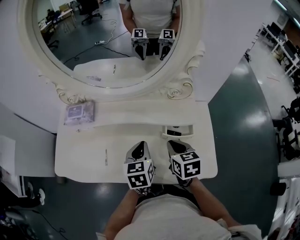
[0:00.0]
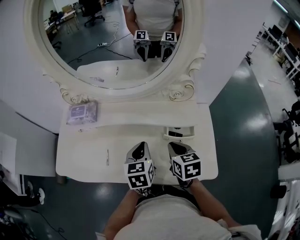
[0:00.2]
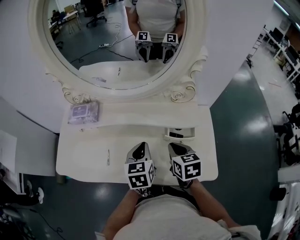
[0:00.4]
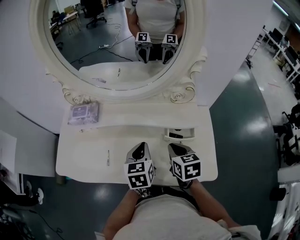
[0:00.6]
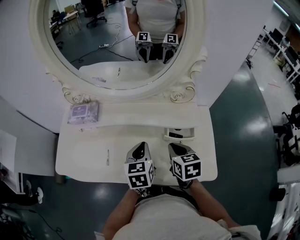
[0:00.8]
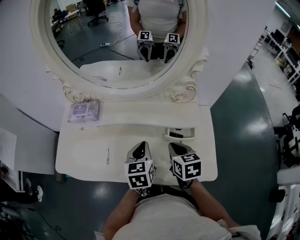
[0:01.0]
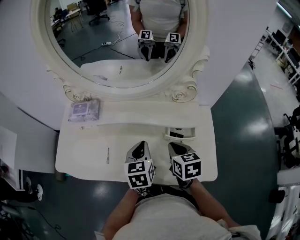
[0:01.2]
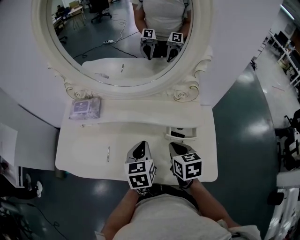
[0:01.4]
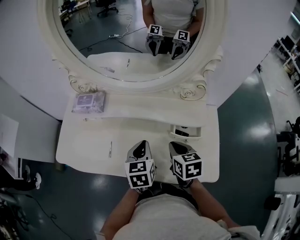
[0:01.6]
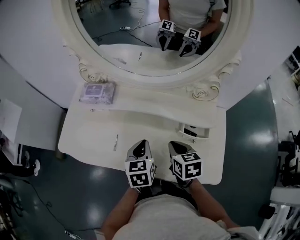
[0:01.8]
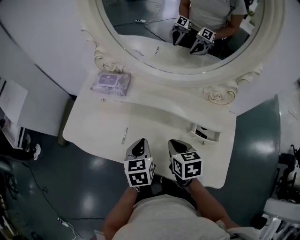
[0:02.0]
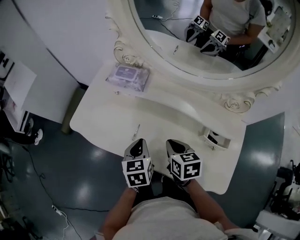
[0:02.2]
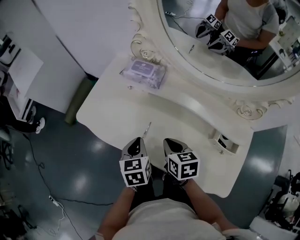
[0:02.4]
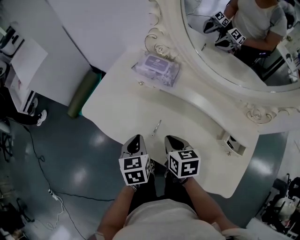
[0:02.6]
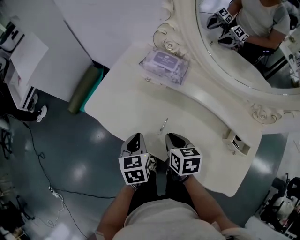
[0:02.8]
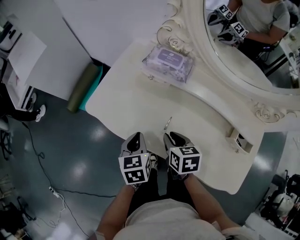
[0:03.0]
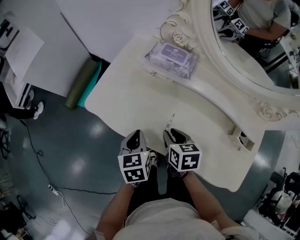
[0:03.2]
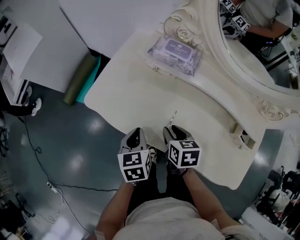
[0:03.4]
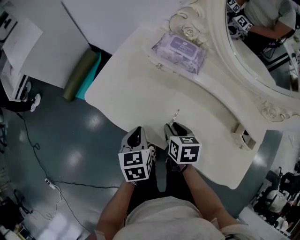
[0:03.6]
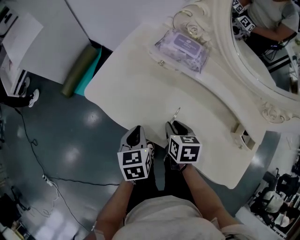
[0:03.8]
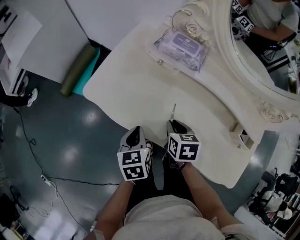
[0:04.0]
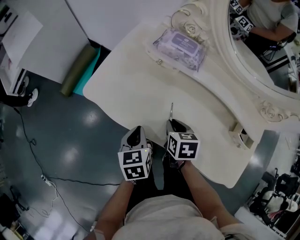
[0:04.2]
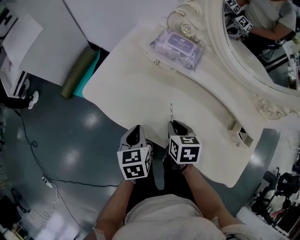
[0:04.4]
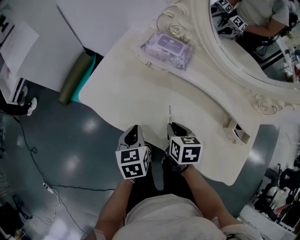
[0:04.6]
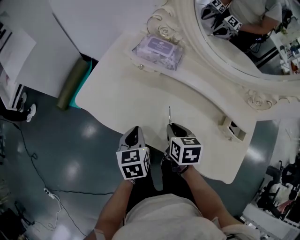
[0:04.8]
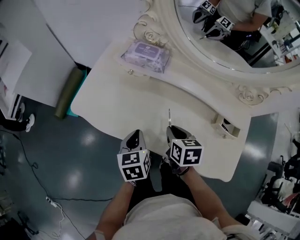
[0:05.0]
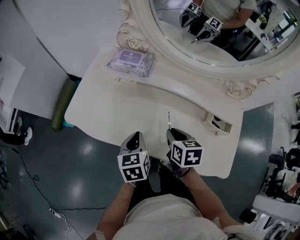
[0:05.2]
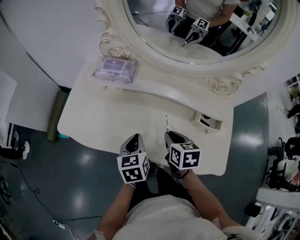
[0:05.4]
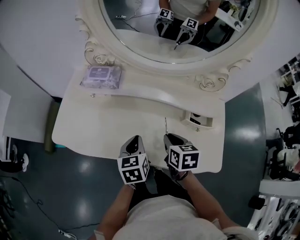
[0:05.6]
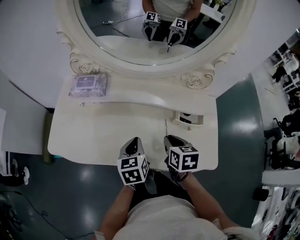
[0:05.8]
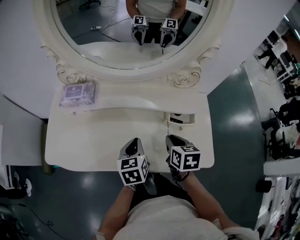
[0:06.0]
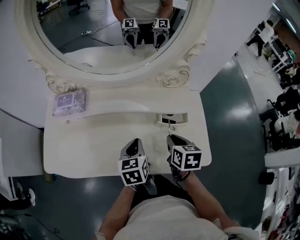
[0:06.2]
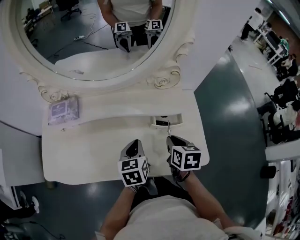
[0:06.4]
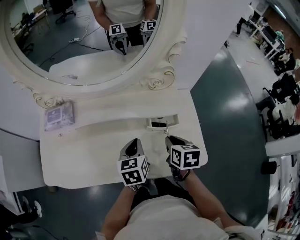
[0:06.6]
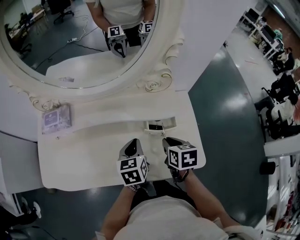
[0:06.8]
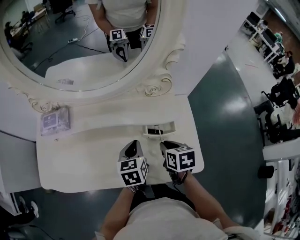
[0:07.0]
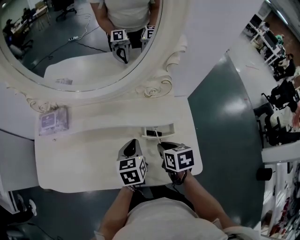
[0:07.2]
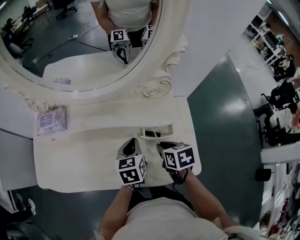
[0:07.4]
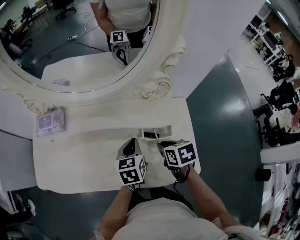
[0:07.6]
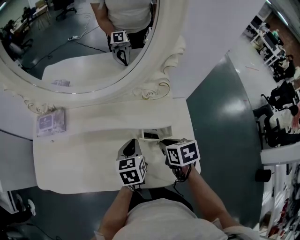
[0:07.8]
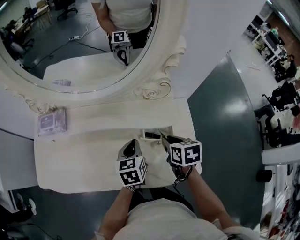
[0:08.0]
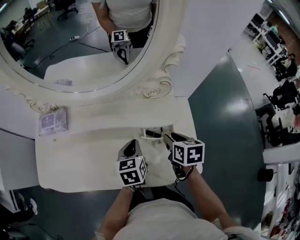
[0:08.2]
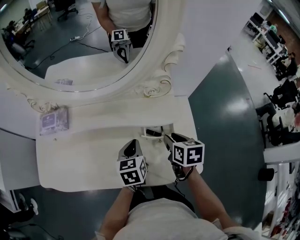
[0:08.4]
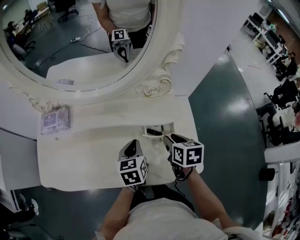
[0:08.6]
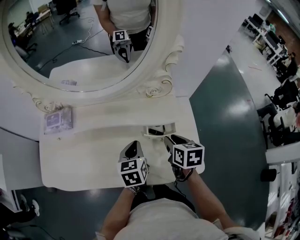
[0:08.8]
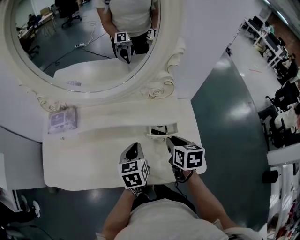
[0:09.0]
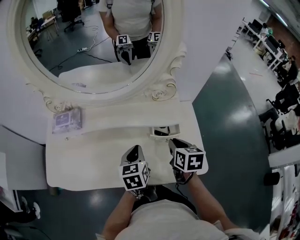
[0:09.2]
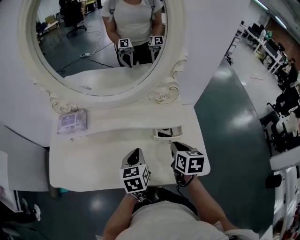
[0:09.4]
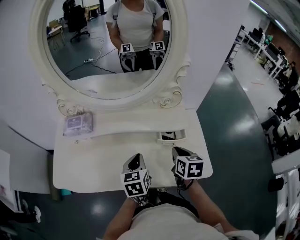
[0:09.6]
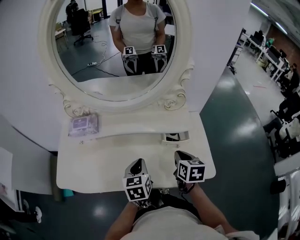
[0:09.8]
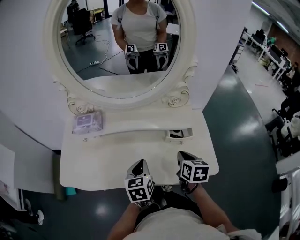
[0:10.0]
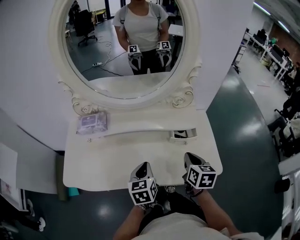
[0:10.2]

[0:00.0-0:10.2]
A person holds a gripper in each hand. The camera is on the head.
0:00.0 to 0:01.4: Both grippers stay about where they are.
0:01.4 to 0:03.0: The left gripper shifts by about 35 cm, and swivels approximately 30 degrees; the right gripper changes place by roughly 30 cm, and rotates approximately 30 degrees.
0:03.0 to 0:04.4: The grippers stay close to where they were, moving slightly.
0:04.4 to 0:05.8: The left gripper moves approximately 25 cm, and turns by about 30 degrees. Meanwhile the right gripper ends up some 25 cm from where it was, and turns by approximately 30 degrees.
0:05.8 to 0:07.2: The right gripper travels to the right by roughly 10 cm; the left gripper shifts roughly 15 cm to the right and forward.
0:07.2 to 0:08.8: The grippers make only small movements.
0:08.8 to 0:10.2: Both grippers travel together backward and to the left, some 10 cm. The right gripper closes.

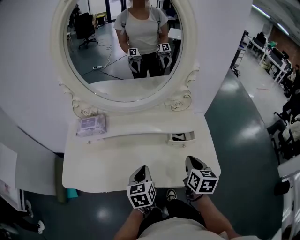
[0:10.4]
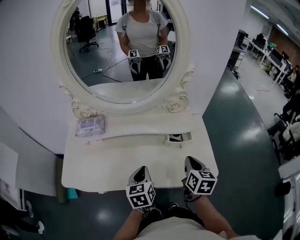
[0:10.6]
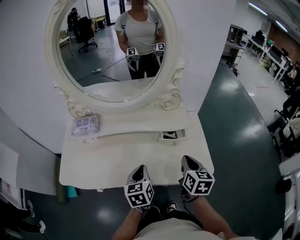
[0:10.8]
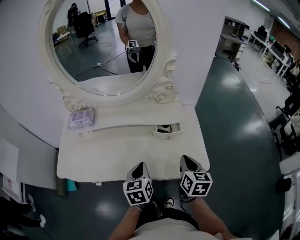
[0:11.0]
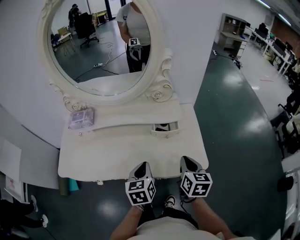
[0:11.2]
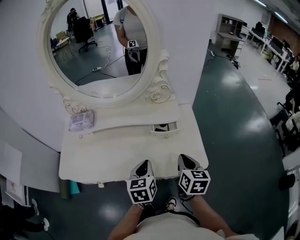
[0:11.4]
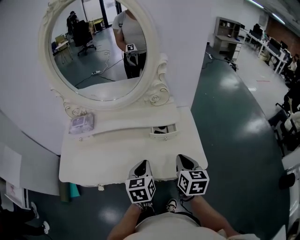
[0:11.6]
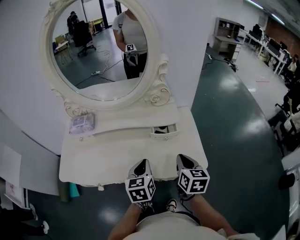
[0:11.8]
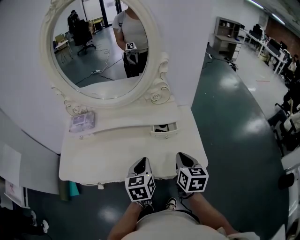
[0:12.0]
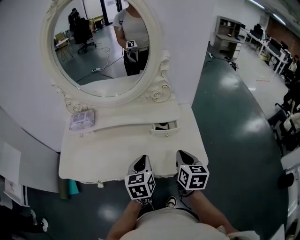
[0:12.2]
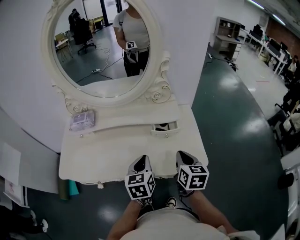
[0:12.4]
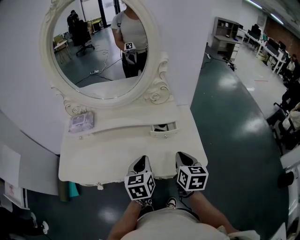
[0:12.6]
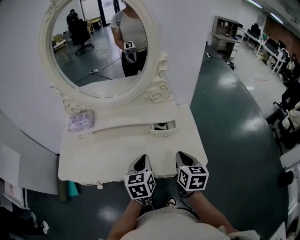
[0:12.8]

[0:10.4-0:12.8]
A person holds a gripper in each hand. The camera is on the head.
0:10.4 to 0:11.6: The right gripper is displaced to the right by some 5 cm. Meanwhile the left gripper travels to the right by some 10 cm.
0:11.6 to 0:12.8: There are only small adjustments of the grippers.

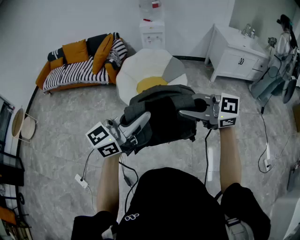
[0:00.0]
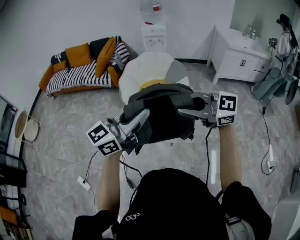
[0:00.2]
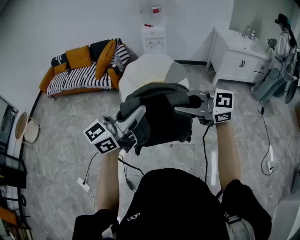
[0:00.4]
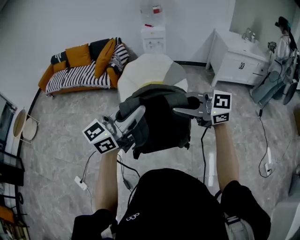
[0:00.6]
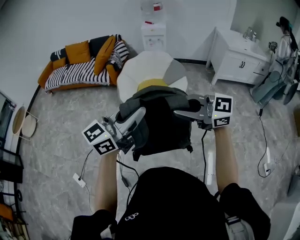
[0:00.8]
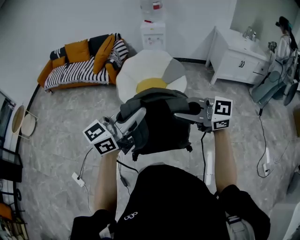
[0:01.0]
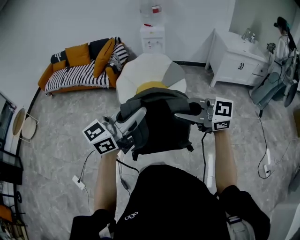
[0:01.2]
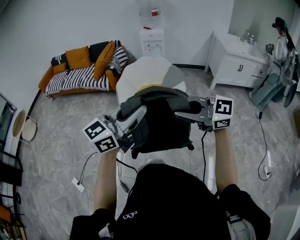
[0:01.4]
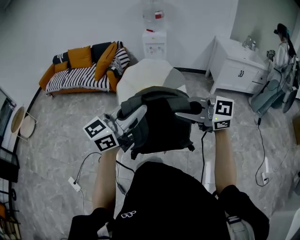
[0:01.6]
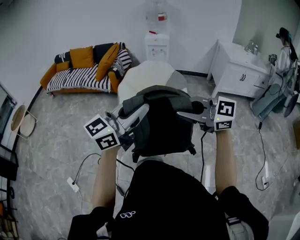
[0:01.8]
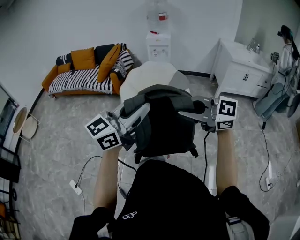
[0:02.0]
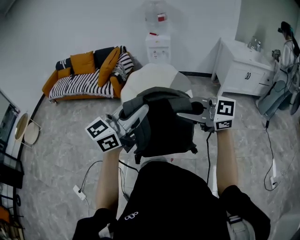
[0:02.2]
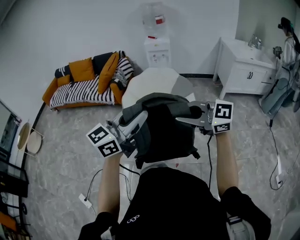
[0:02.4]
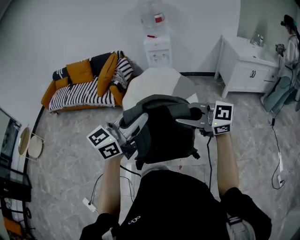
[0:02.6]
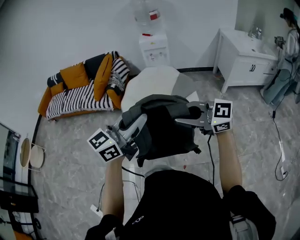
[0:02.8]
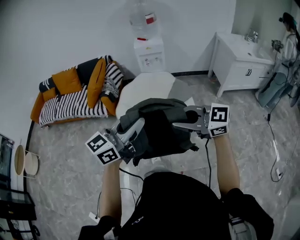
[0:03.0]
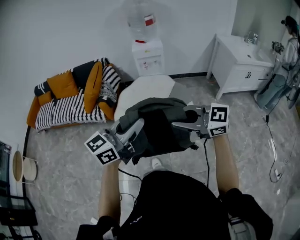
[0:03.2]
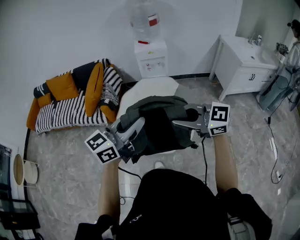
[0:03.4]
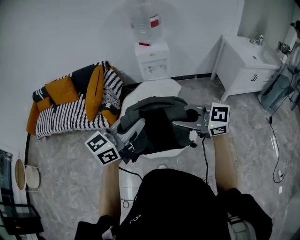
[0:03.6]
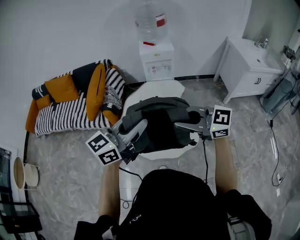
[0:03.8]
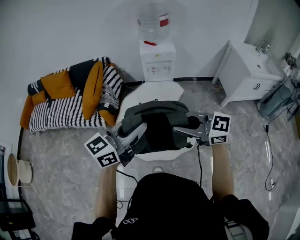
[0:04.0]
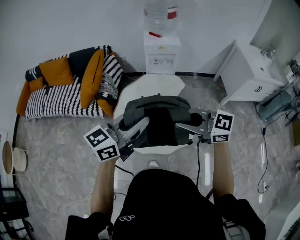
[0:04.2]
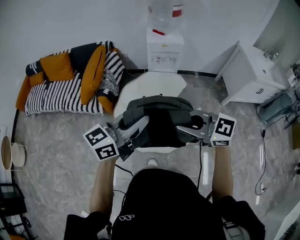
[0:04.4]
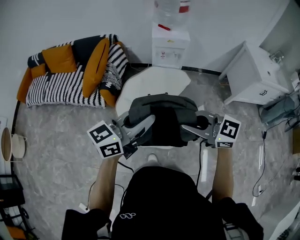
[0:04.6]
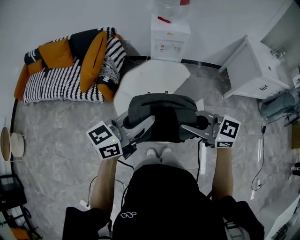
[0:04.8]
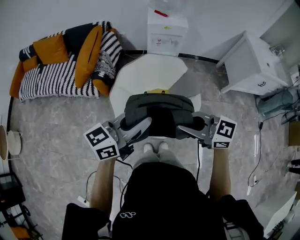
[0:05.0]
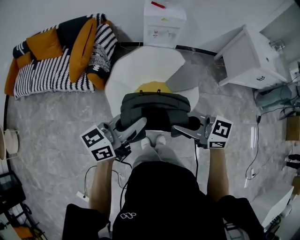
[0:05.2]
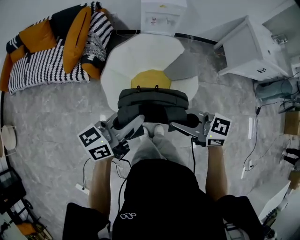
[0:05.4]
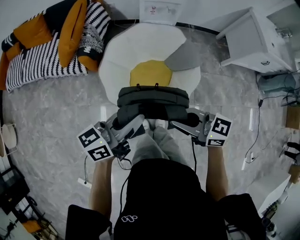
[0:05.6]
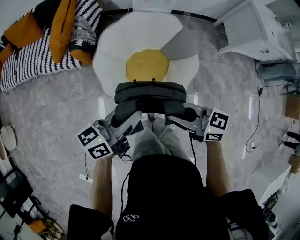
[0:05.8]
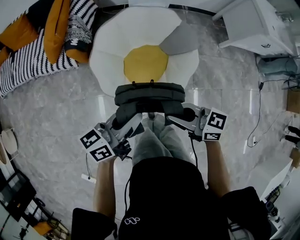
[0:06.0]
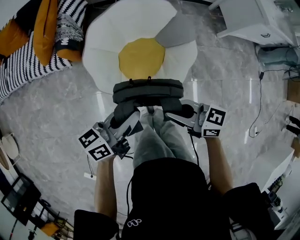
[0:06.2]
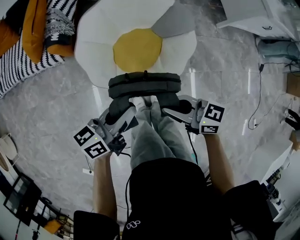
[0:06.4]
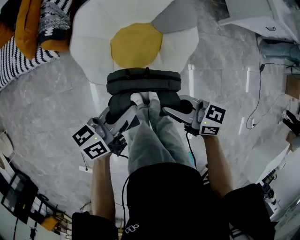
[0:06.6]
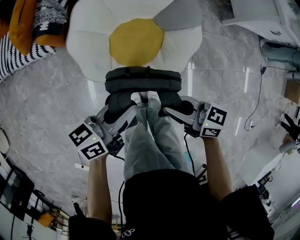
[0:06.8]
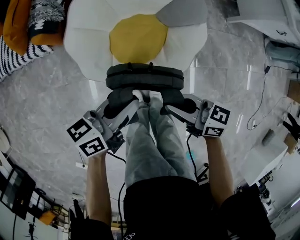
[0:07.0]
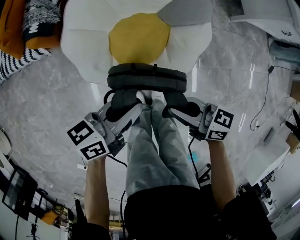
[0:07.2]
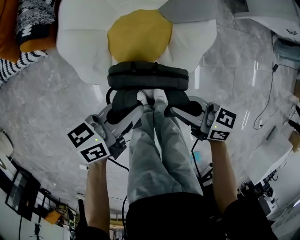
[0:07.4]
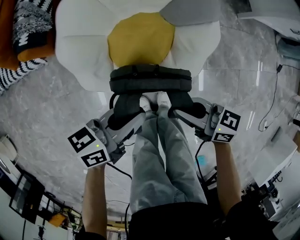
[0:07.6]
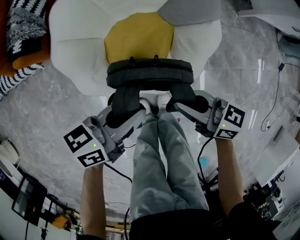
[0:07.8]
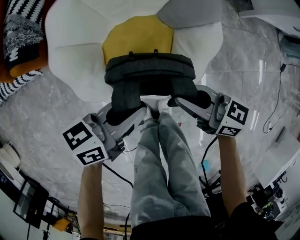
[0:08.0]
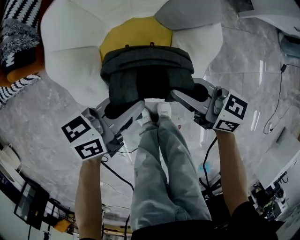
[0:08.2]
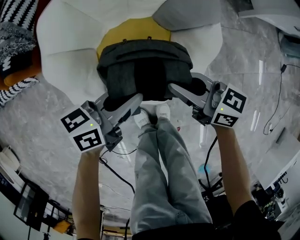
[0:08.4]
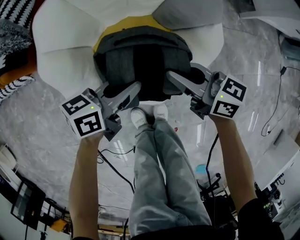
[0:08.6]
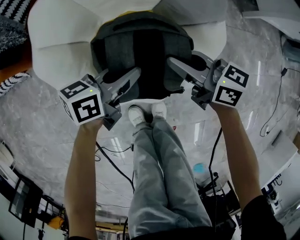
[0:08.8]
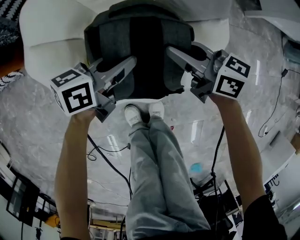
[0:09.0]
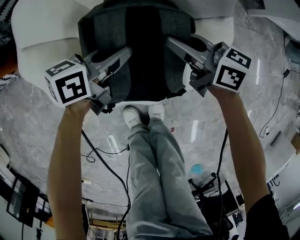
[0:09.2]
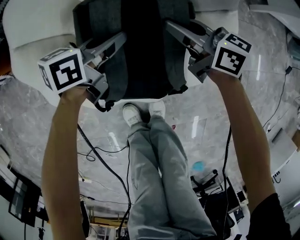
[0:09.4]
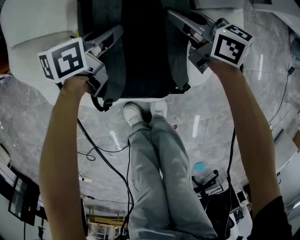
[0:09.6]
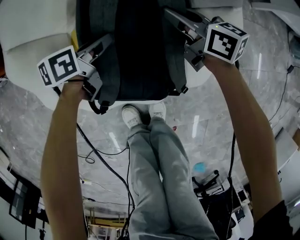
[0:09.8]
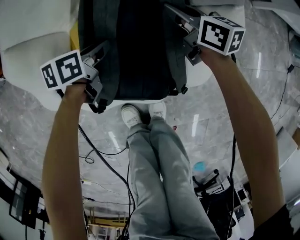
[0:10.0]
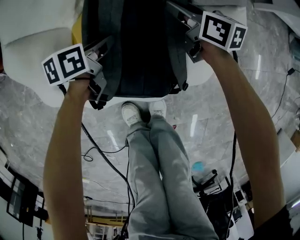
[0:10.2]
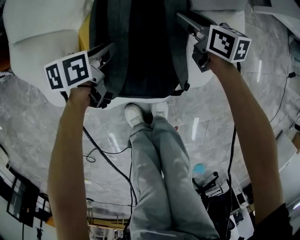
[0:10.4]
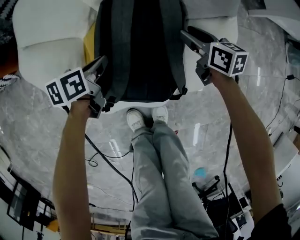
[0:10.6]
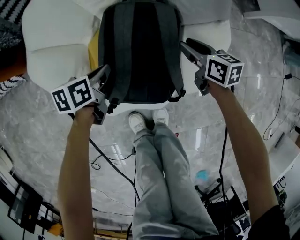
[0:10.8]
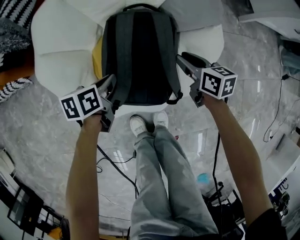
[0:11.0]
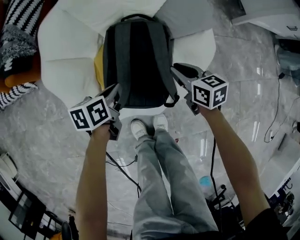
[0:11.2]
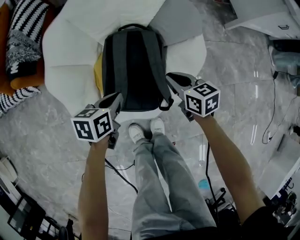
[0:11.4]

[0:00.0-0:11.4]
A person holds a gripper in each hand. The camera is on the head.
0:00.0 to 0:01.4: The grippers move only a little.
0:01.4 to 0:02.8: The right gripper changes place by some 25 cm. Meanwhile the left gripper changes place by about 25 cm.
0:02.8 to 0:04.2: The left gripper shifts by some 35 cm. Meanwhile the right gripper moves some 35 cm.
0:04.2 to 0:05.6: The two grippers go approximately 15 cm downward. The right gripper rotates approximately 20 degrees. The left gripper changes its angle by some 30 degrees.
0:05.6 to 0:07.2: Both grippers move downward, some 25 cm. The left gripper turns by approximately 20 degrees; the right gripper turns by some 30 degrees.
0:07.2 to 0:08.6: The right gripper moves roughly 25 cm. Meanwhile the left gripper goes about 20 cm downward.
0:08.6 to 0:10.0: The grippers both shift downward by approximately 25 cm. The left gripper turns by roughly 30 degrees.
0:10.0 to 0:11.4: Both grippers travel together upward and backward, approximately 20 cm. The left gripper closes up, while the right gripper opens, then closes once more.
